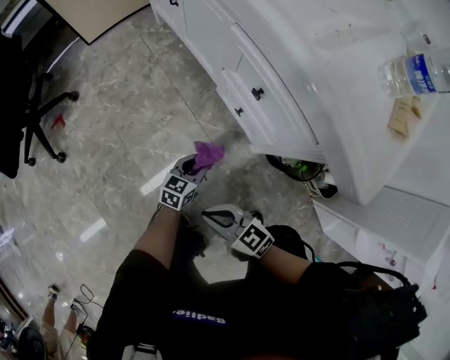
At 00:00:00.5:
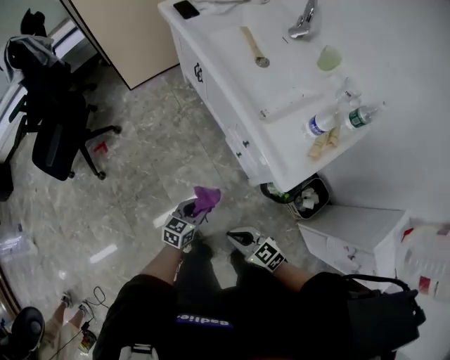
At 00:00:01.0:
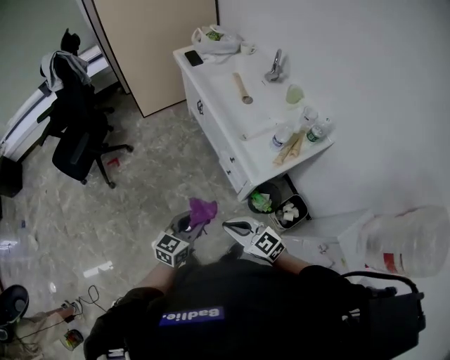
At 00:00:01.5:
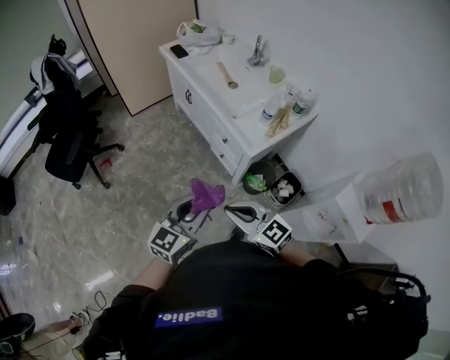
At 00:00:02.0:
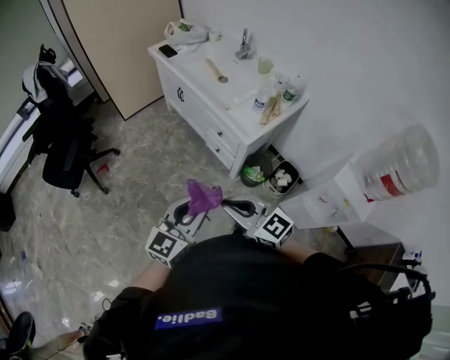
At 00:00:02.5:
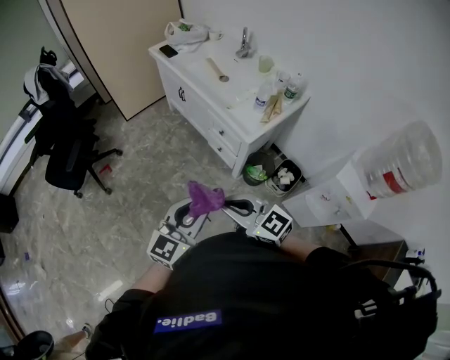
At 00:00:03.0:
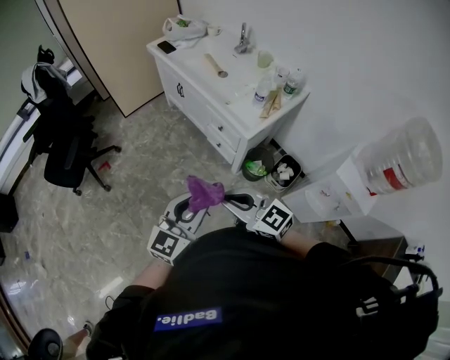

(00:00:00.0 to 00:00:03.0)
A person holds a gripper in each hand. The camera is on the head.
00:00:00.0 - 00:00:01.5: The grippers both shift upward by some 70 cm. The right gripper swivels some 20 degrees. The left gripper rotates about 30 degrees.
00:00:01.5 - 00:00:03.0: The left gripper shifts by about 5 cm.

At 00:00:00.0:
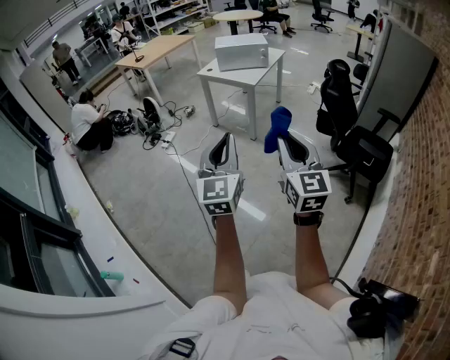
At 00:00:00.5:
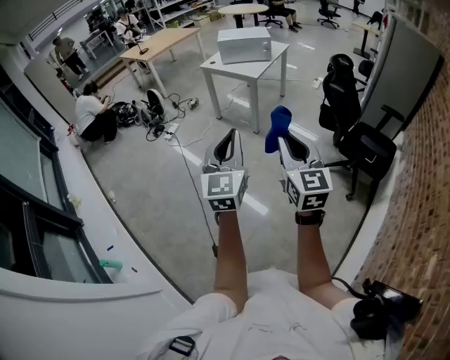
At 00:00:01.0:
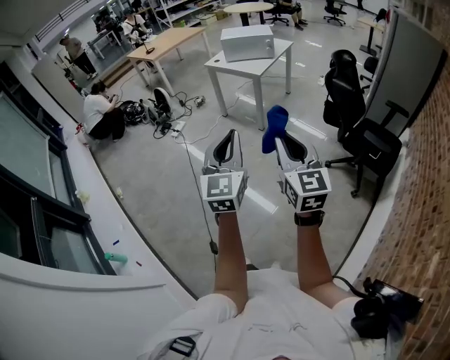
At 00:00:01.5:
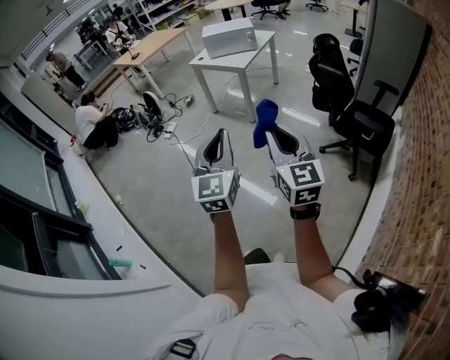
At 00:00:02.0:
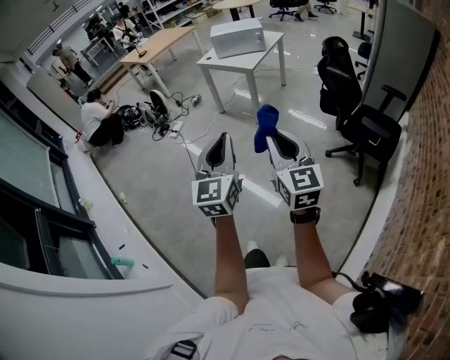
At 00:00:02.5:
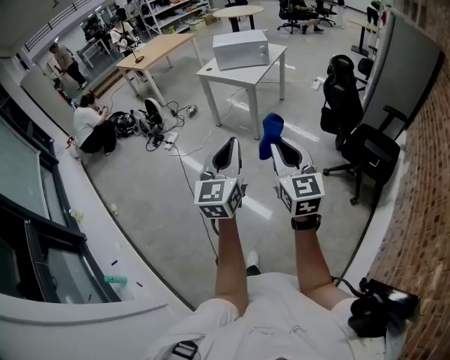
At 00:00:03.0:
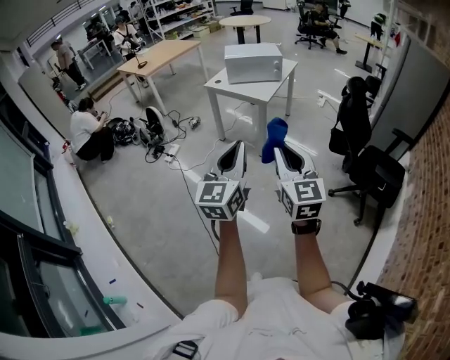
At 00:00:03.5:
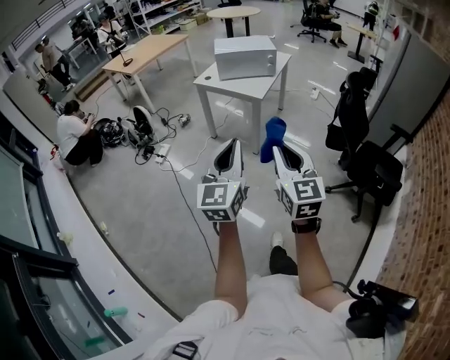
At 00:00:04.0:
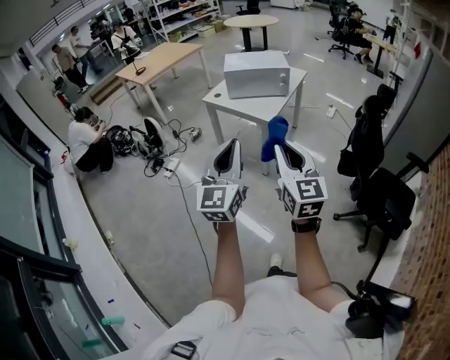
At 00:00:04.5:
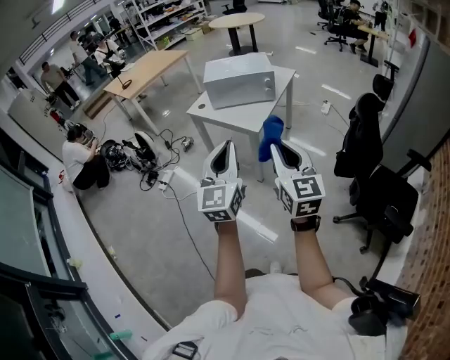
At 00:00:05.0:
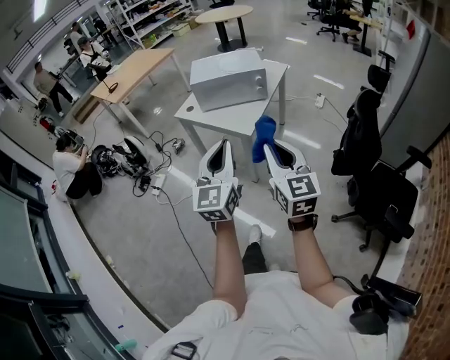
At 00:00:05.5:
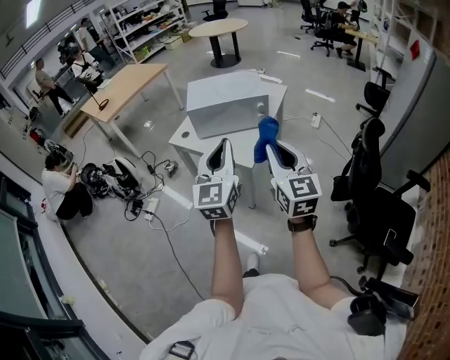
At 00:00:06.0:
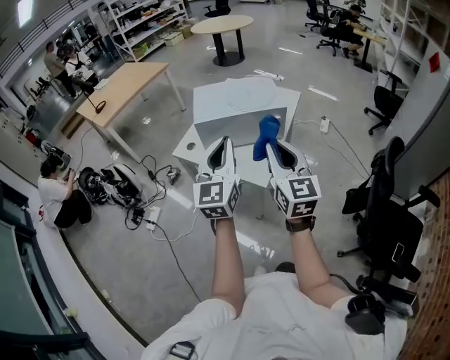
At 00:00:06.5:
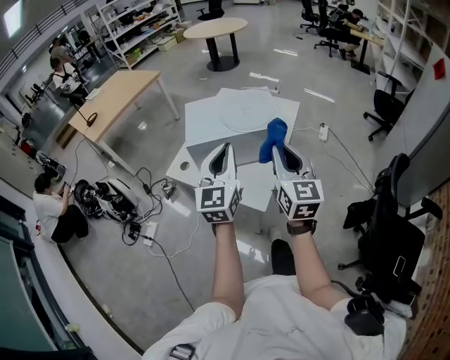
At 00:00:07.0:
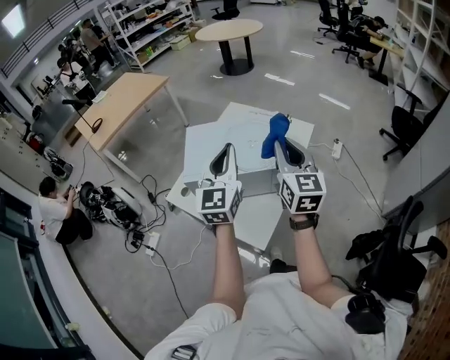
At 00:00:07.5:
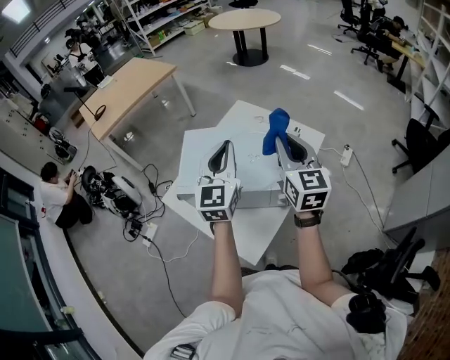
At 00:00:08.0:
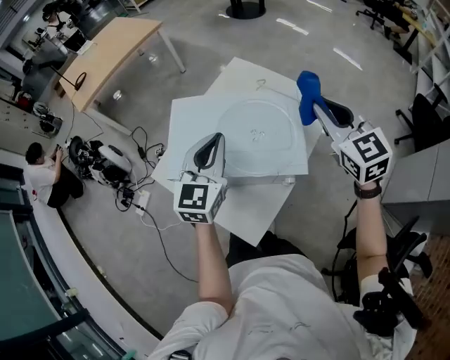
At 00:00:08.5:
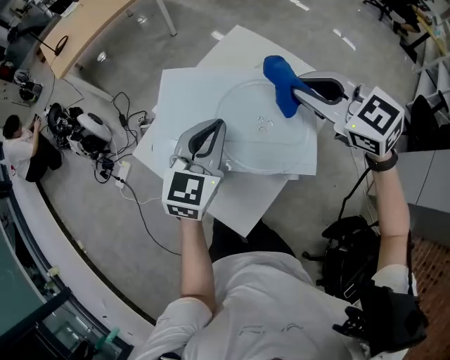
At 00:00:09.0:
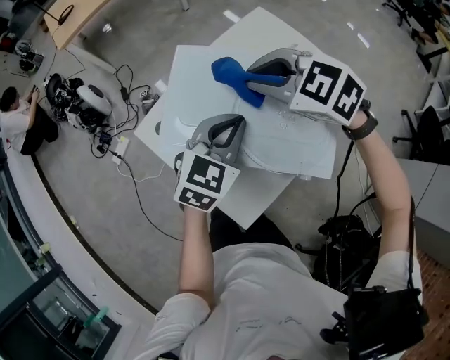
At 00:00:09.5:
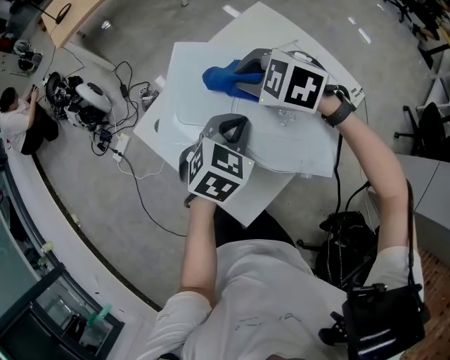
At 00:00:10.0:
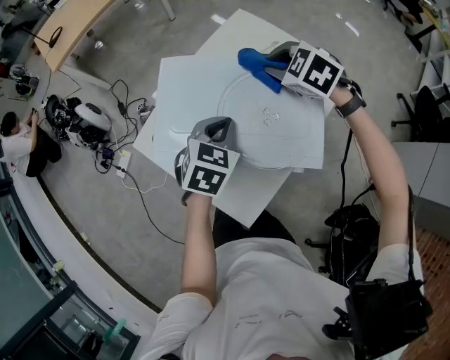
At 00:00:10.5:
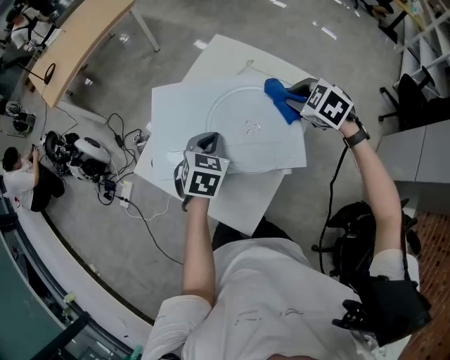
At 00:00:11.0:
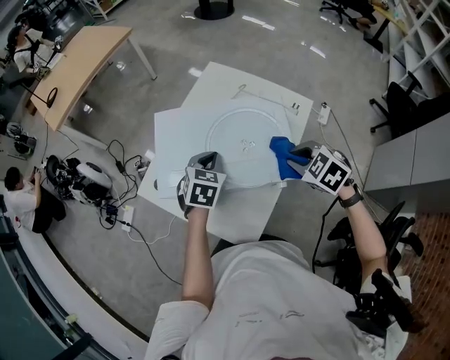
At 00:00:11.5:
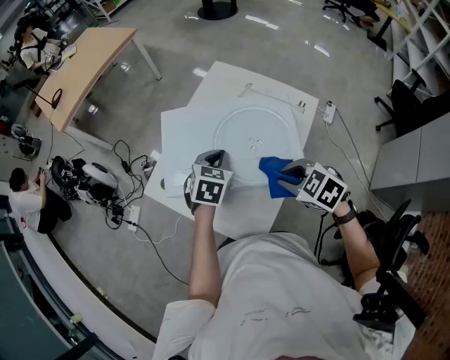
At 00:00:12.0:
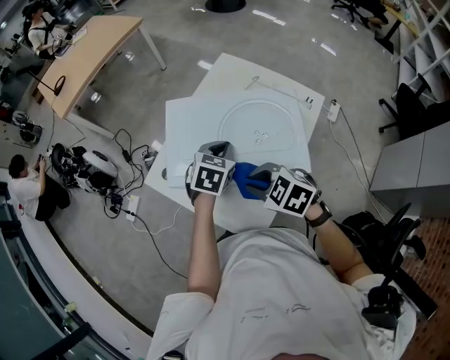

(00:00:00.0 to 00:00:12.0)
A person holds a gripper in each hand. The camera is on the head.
00:00:00.0 - 00:00:02.0: The right gripper changes place by about 5 cm. The left gripper heads backward and to the right, covering approximately 10 cm.
00:00:02.0 - 00:00:04.0: Both grippers are carried forward, about 40 cm.
00:00:04.0 - 00:00:06.0: The pair of grippers is taken forward, some 50 cm.
00:00:06.0 - 00:00:08.0: The grippers both shift forward by about 40 cm. The right gripper swivels approximately 30 degrees.
00:00:08.0 - 00:00:10.0: The left gripper goes about 15 cm downward, and angles its fingers downward, by approximately 40 degrees; the right gripper moves downward, forward and to the left, roughly 25 cm, and angles its fingers downward, by roughly 40 degrees.
00:00:10.0 - 00:00:12.0: The right gripper travels backward and to the left by roughly 25 cm.

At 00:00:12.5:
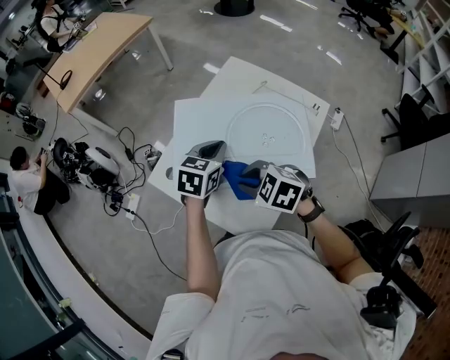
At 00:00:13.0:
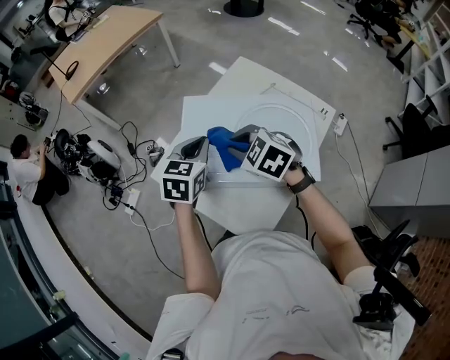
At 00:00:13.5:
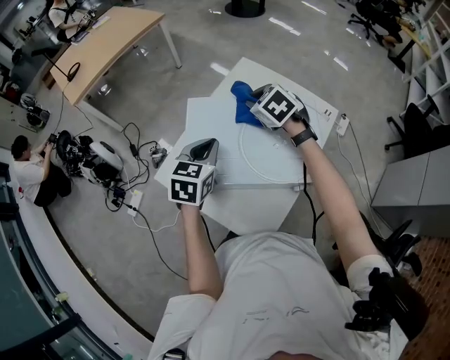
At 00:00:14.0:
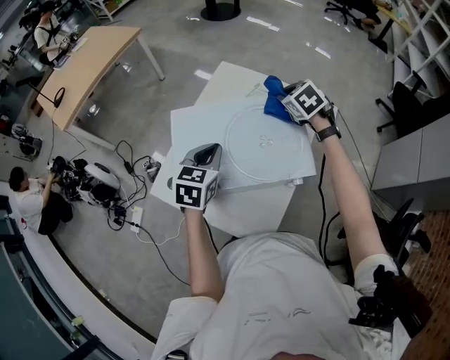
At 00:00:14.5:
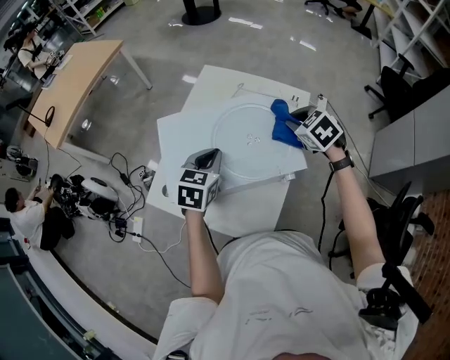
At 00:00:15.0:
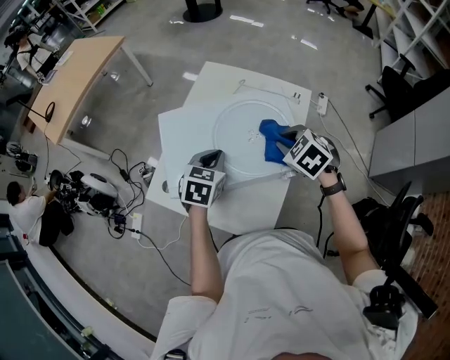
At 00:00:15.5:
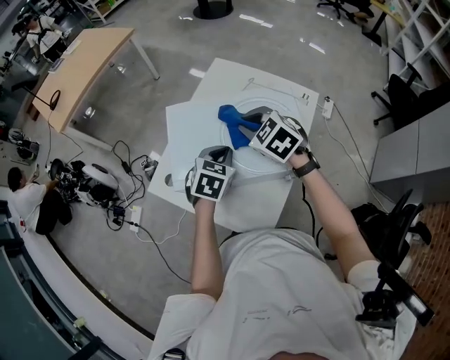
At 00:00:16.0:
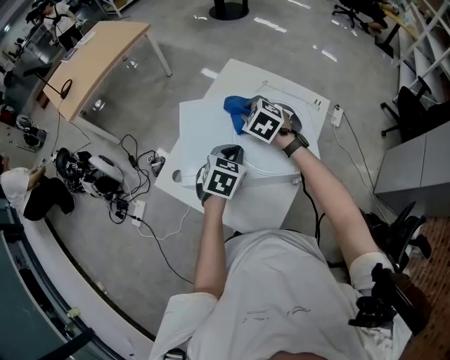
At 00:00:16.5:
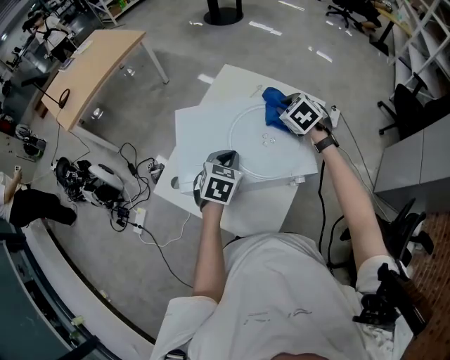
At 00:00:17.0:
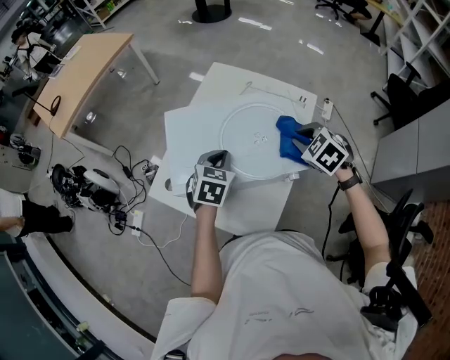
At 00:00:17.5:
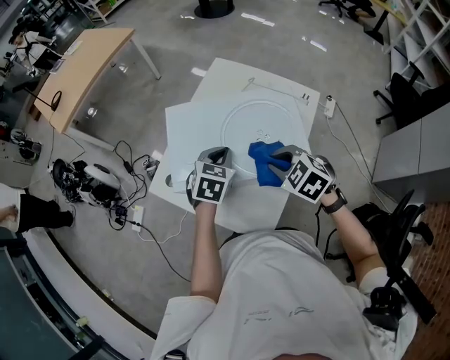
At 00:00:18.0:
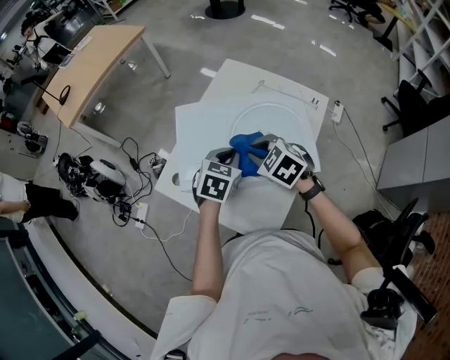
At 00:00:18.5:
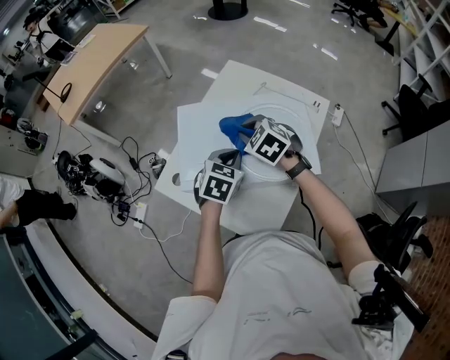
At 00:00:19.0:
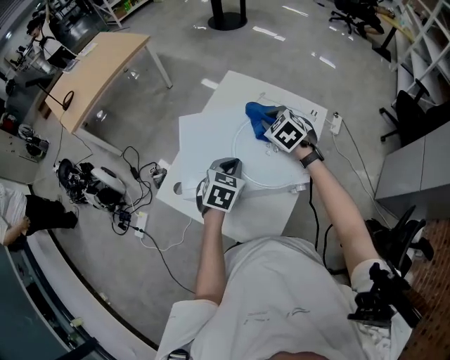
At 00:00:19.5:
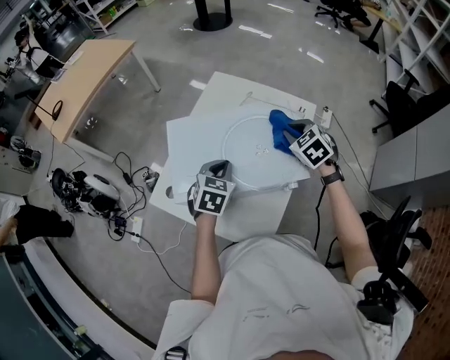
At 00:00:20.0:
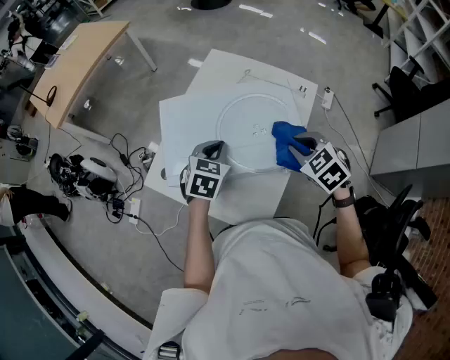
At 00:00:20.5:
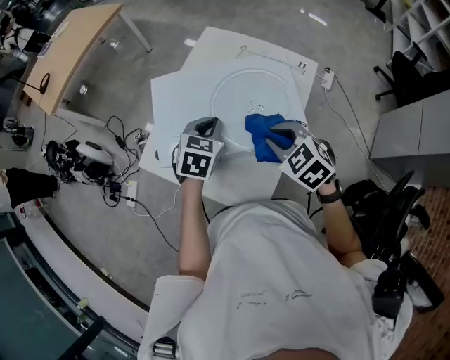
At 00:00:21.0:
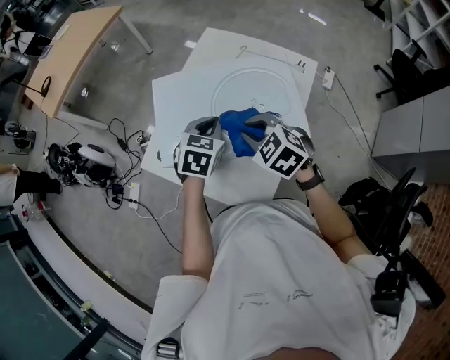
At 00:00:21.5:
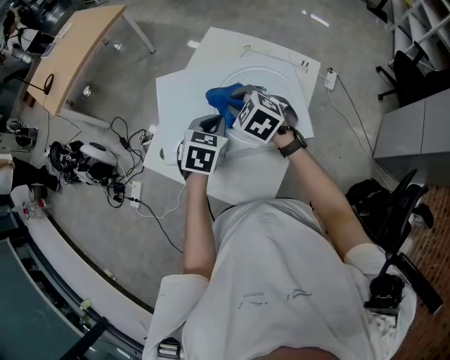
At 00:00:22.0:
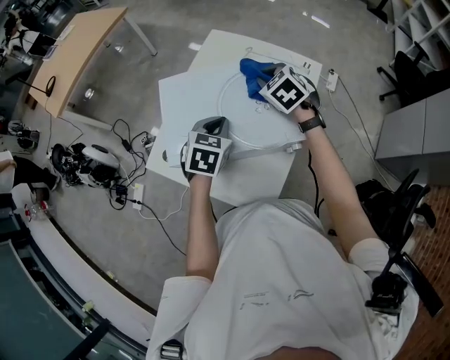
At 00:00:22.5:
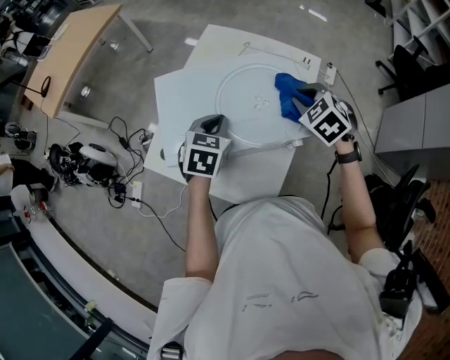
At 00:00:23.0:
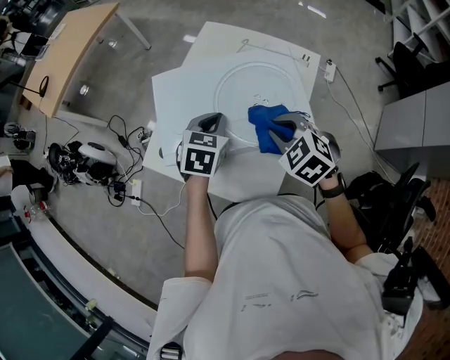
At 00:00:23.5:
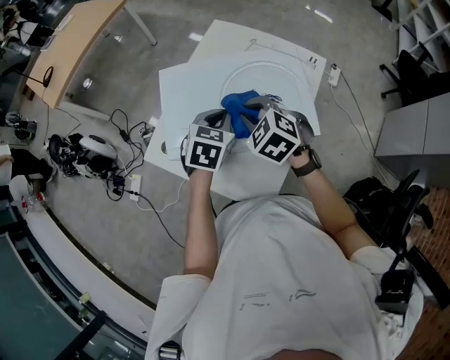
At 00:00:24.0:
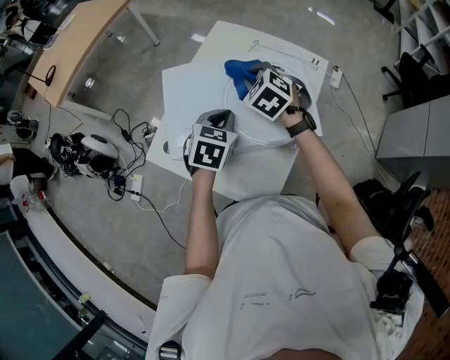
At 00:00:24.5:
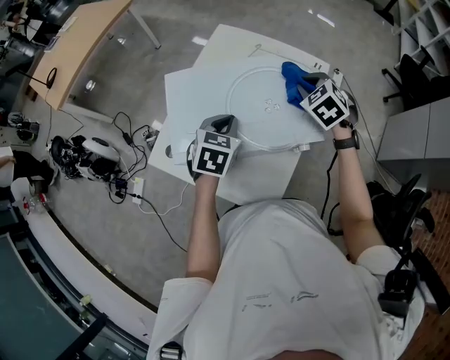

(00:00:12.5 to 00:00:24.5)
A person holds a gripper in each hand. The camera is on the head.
00:00:12.5 - 00:00:14.5: The right gripper ends up about 25 cm from where it was, and changes its angle by approximately 40 degrees.
00:00:14.5 - 00:00:16.5: The right gripper moves forward, about 5 cm, and goes to the left and returns, approximately 20 cm each way.
00:00:16.5 - 00:00:18.5: The right gripper goes about 15 cm to the left and backward.
00:00:18.5 - 00:00:20.5: The right gripper shifts approximately 15 cm backward and to the right.
00:00:20.5 - 00:00:22.5: The right gripper travels forward and to the right by about 10 cm.
00:00:22.5 - 00:00:24.5: The right gripper travels forward by roughly 5 cm, and travels to the left and back again, about 15 cm each way.
